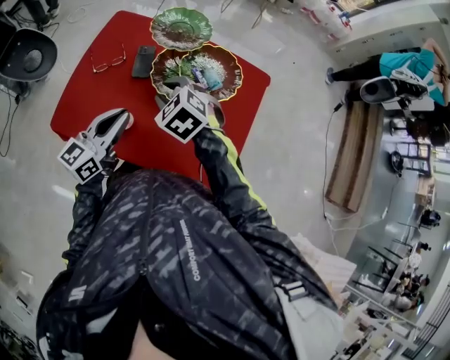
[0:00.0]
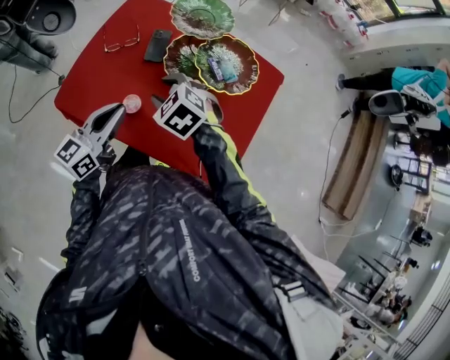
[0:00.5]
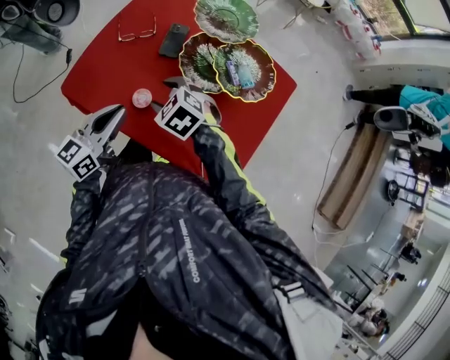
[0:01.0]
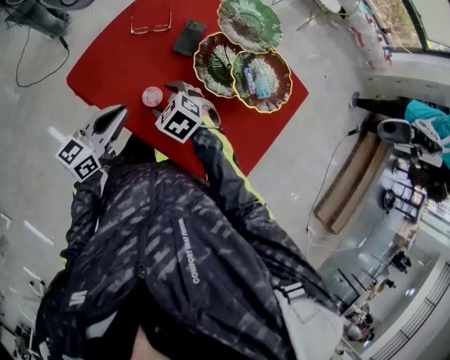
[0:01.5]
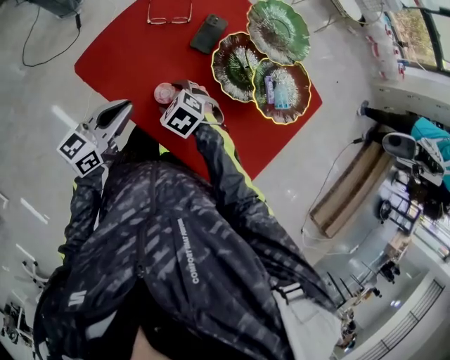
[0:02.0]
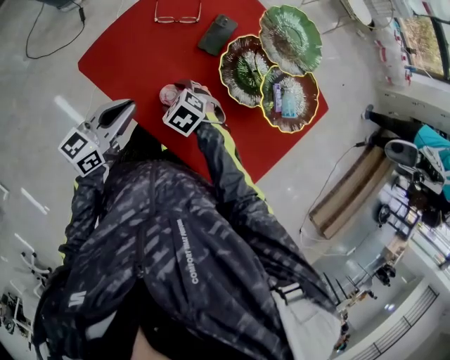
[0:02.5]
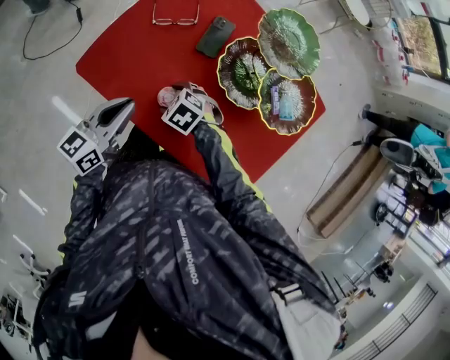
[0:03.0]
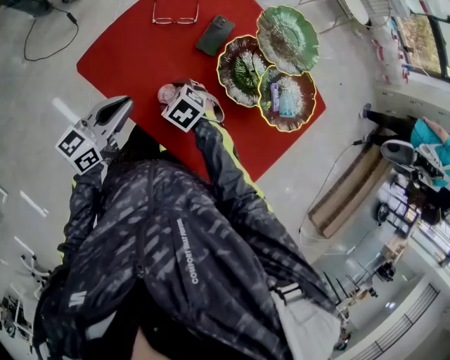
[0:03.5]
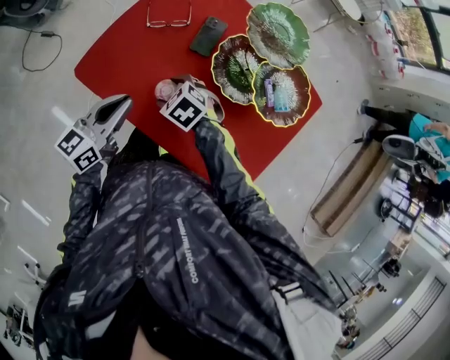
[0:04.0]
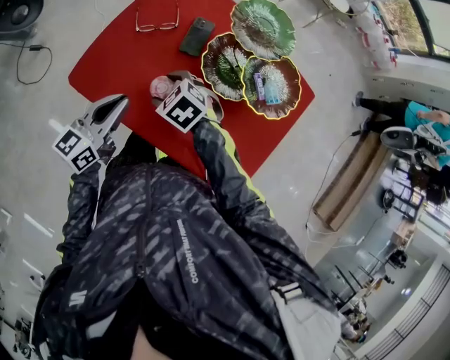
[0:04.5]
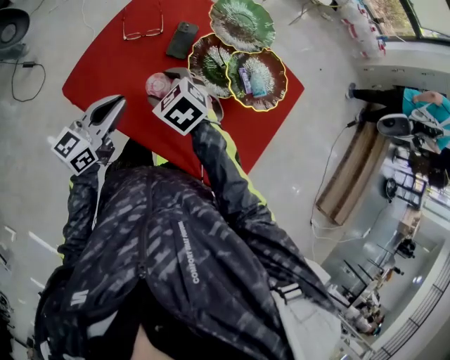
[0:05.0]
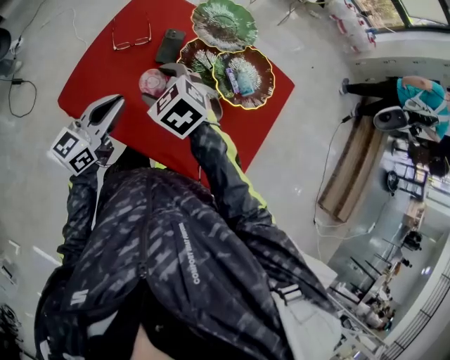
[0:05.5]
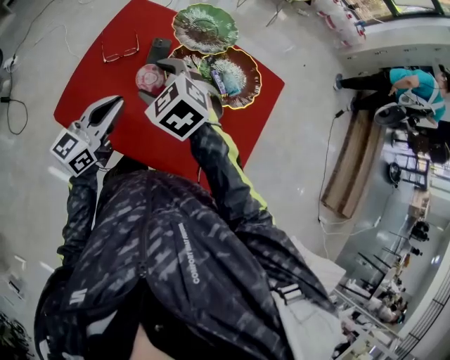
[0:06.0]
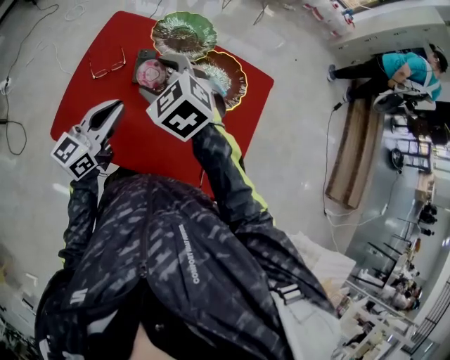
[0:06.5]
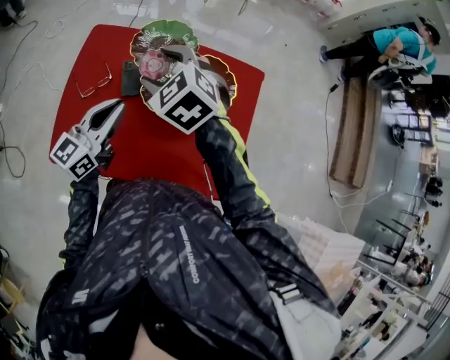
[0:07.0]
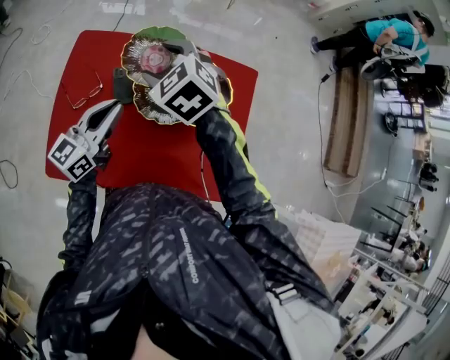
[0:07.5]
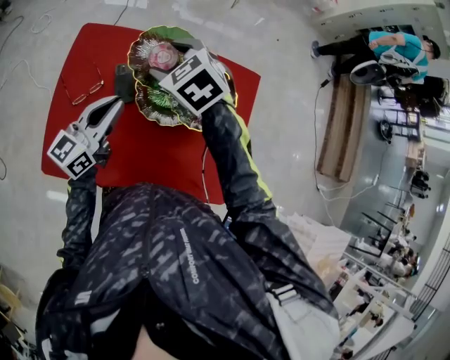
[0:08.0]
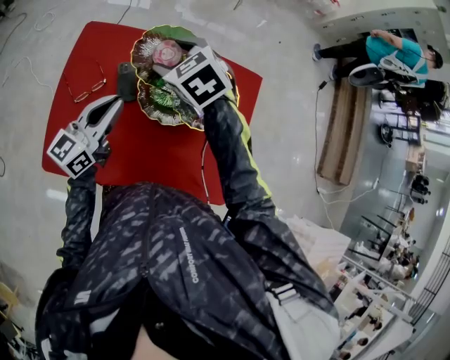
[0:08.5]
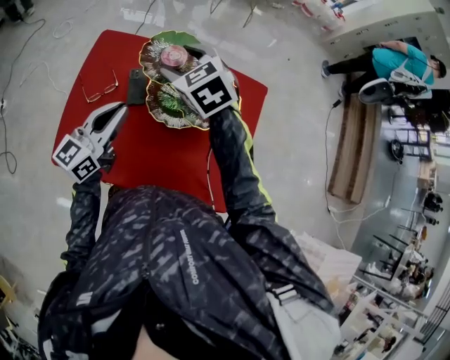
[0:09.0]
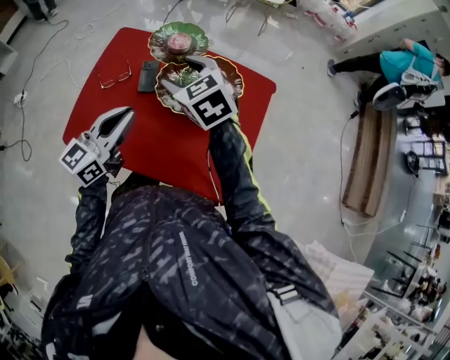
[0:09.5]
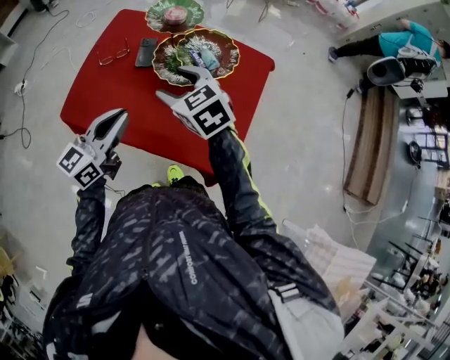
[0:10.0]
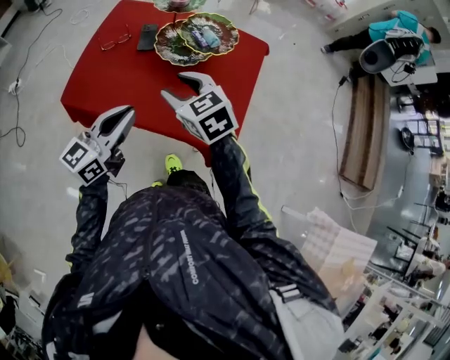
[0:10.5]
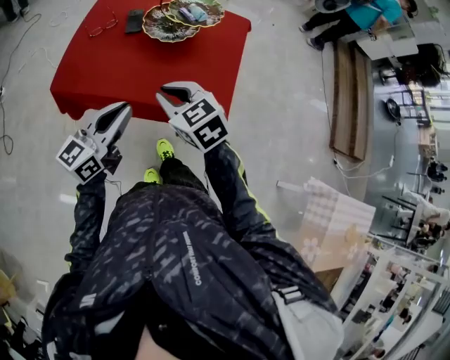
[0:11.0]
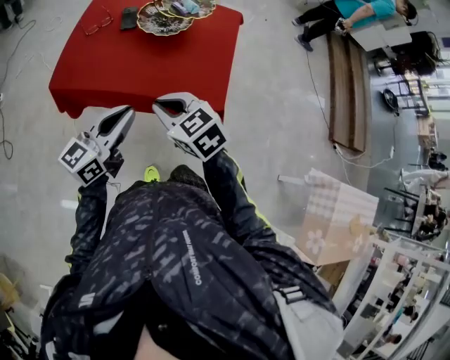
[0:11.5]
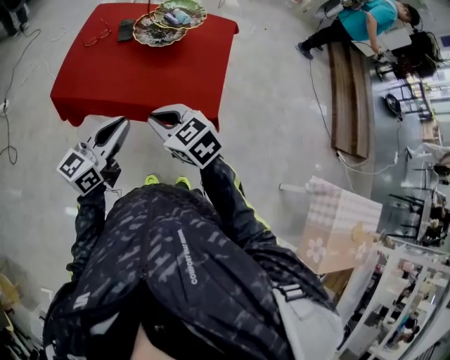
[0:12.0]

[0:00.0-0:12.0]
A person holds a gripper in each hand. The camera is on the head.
0:00.0 to 0:02.0: The right gripper goes some 20 cm downward, changes its angle by roughly 30 degrees, and opens. Meanwhile the left gripper shifts by roughly 15 cm.
0:02.0 to 0:04.0: The grippers make only small movements.
0:04.0 to 0:06.0: The right gripper moves upward, some 25 cm, and changes its angle by some 30 degrees. Meanwhile the left gripper heads upward and to the right, covering roughly 10 cm.
0:06.0 to 0:08.0: The two grippers go some 15 cm forward and to the right.
0:08.0 to 0:10.0: Both grippers travel together backward, some 25 cm.
0:10.0 to 0:12.0: Both grippers move backward, roughly 35 cm. The right gripper closes.

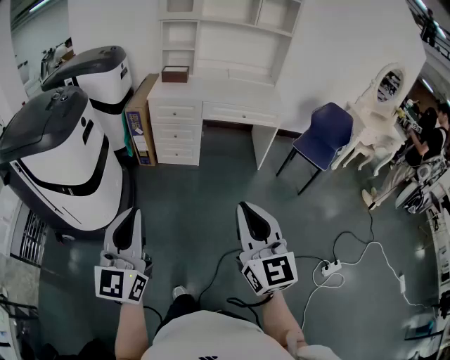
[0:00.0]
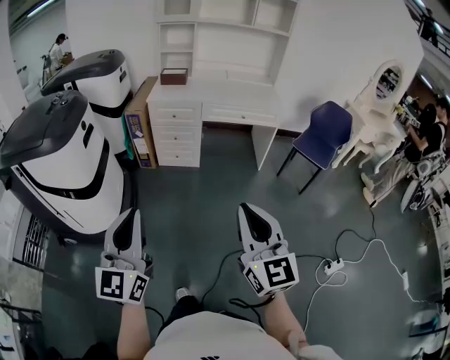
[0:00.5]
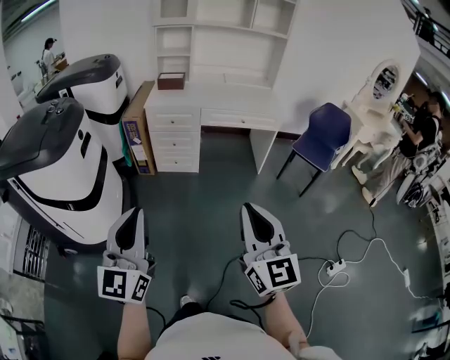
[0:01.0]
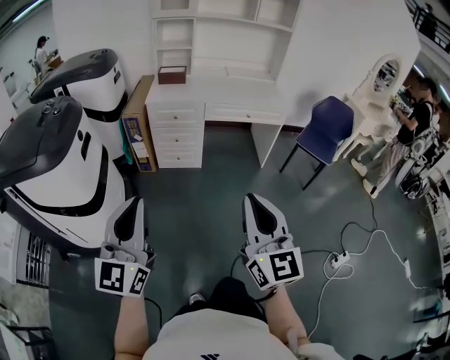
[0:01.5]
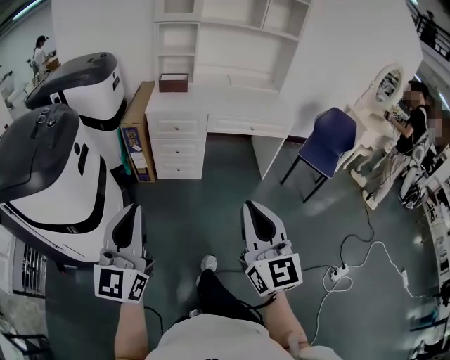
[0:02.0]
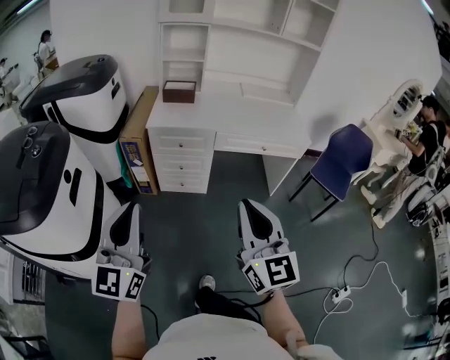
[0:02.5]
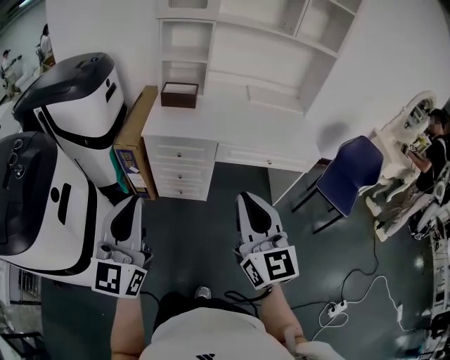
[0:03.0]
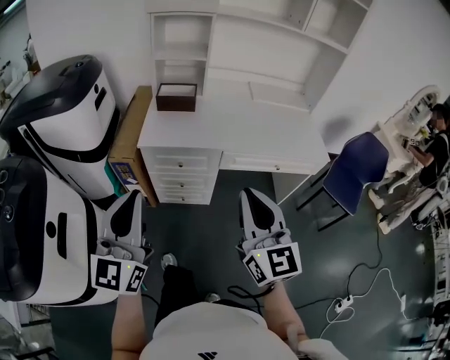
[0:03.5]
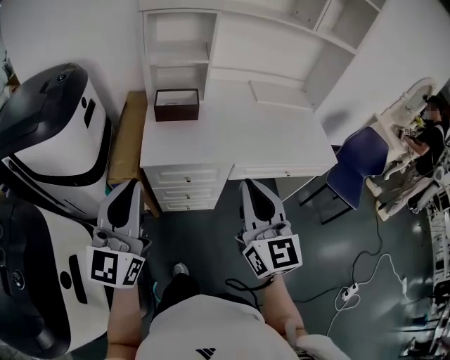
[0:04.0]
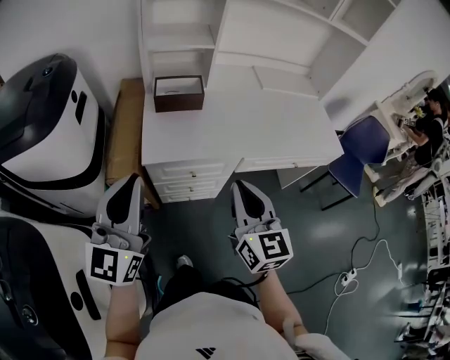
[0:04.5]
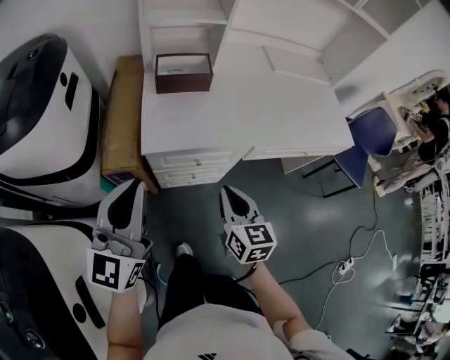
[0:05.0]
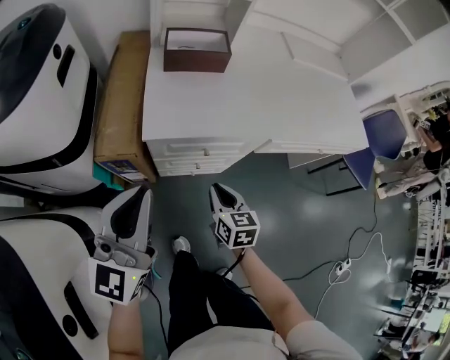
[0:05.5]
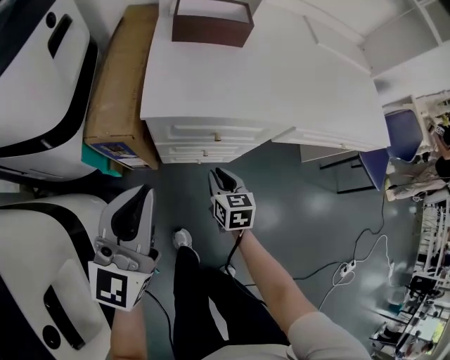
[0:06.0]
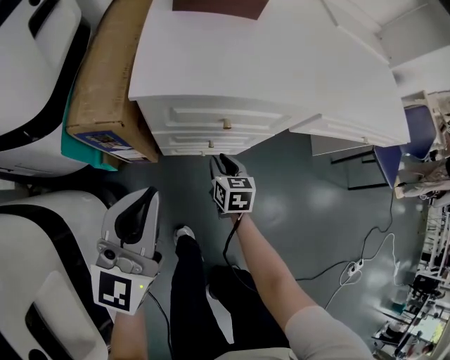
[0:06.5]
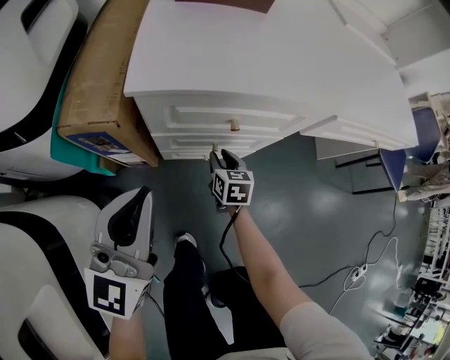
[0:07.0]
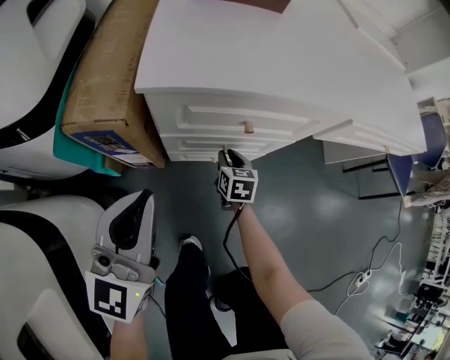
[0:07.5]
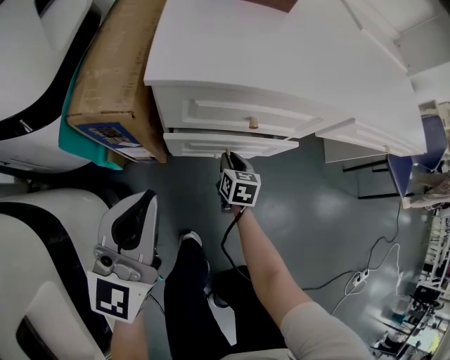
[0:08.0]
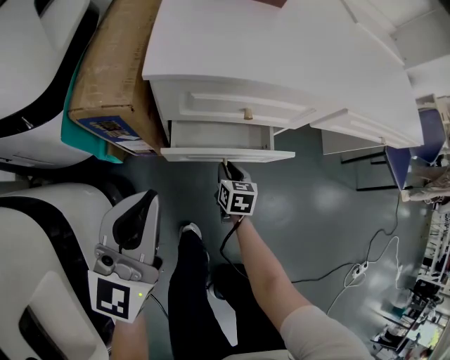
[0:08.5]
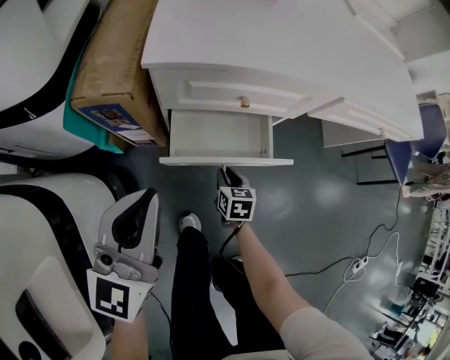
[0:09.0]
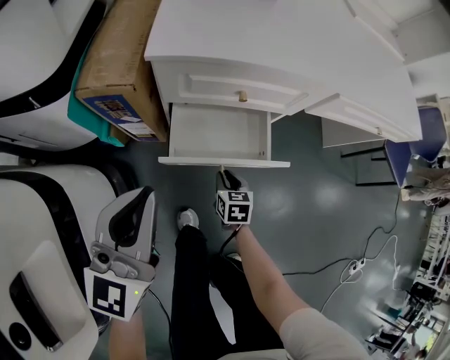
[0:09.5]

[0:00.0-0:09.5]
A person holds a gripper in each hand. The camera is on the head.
0:00.0 to 0:02.0: Both grippers move forward and to the left, roughly 20 cm.
0:02.0 to 0:04.0: The two grippers travel together, forward, some 60 cm.
0:04.0 to 0:05.5: The left gripper shifts roughly 20 cm downward and forward; the right gripper travels downward by about 40 cm, and tilts its fingers roughly 40 degrees downward.
0:05.5 to 0:07.5: Both grippers move downward, about 25 cm.
0:07.5 to 0:09.5: The left gripper travels backward by roughly 5 cm. The right gripper travels backward by about 15 cm.

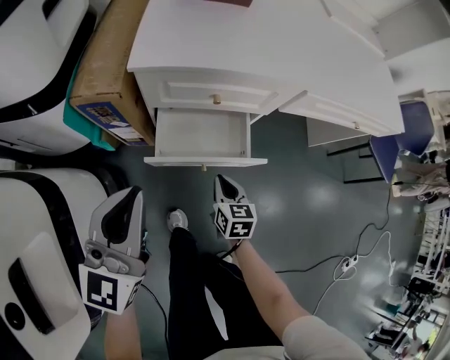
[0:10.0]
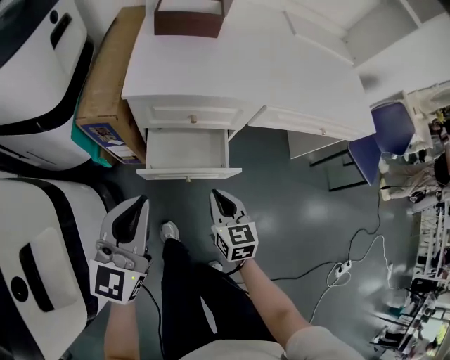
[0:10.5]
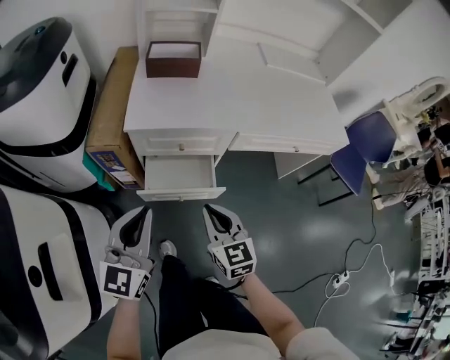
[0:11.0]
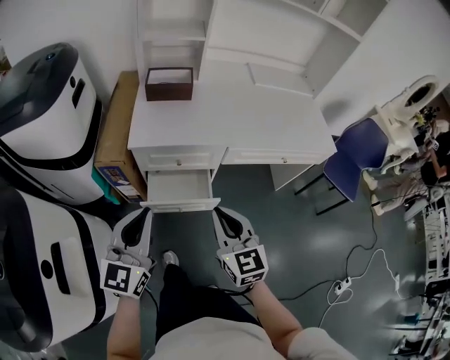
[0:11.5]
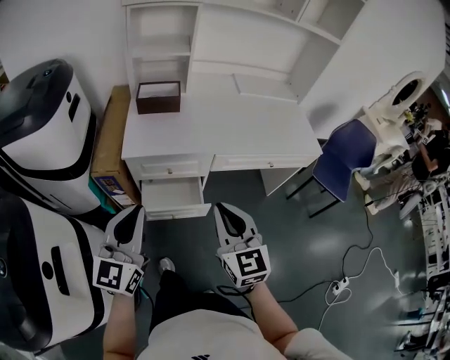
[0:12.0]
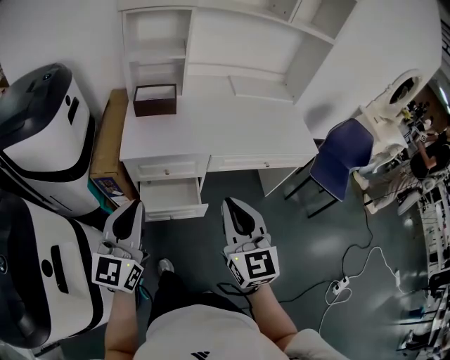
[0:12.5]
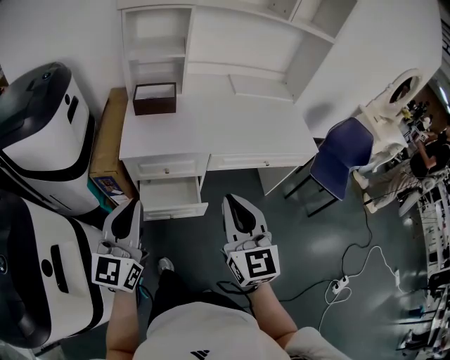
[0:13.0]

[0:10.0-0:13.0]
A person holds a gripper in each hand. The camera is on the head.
0:10.0 to 0:11.5: The left gripper heads upward and to the right, covering some 20 cm; the right gripper moves upward, approximately 40 cm, and rotates about 30 degrees.
0:11.5 to 0:13.0: The right gripper travels upward and to the right by some 15 cm. Meanwhile the left gripper shifts some 5 cm upward.

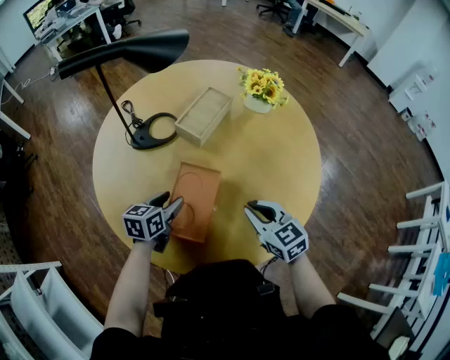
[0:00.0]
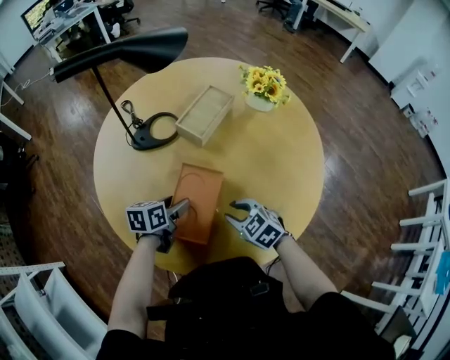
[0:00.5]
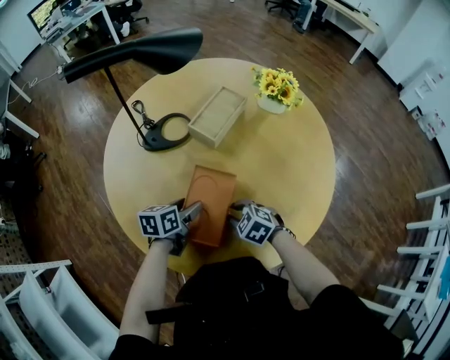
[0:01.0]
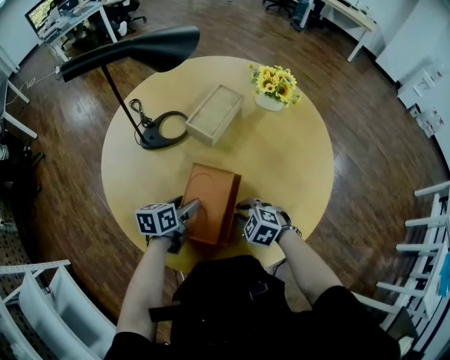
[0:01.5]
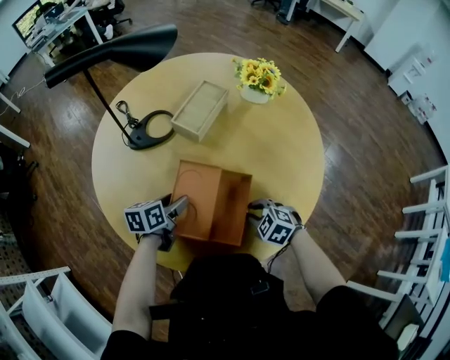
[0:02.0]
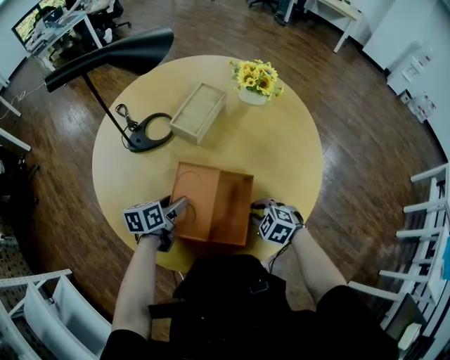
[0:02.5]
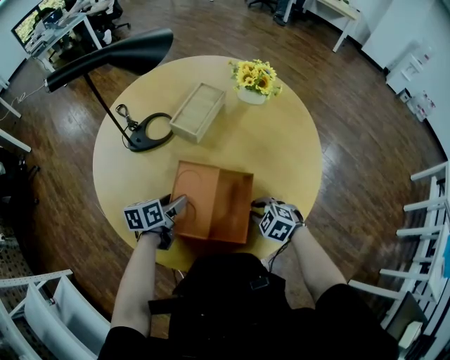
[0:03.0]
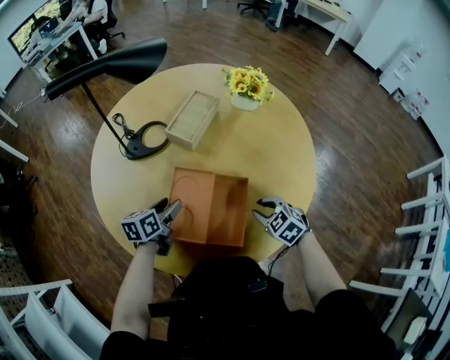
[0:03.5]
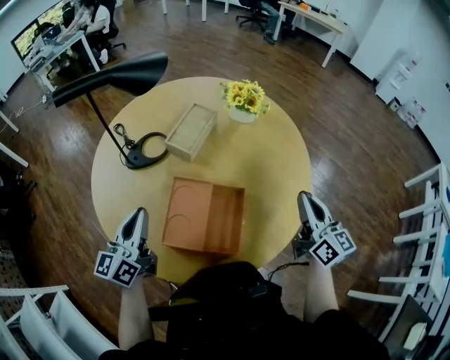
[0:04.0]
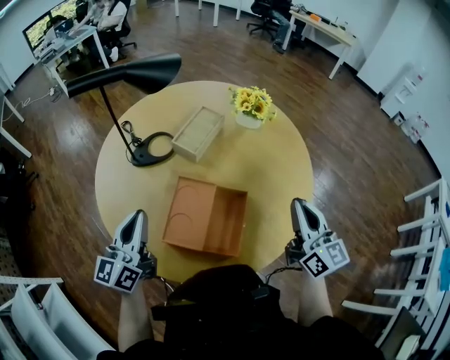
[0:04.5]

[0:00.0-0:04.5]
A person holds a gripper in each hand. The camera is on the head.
0:00.0 to 0:02.0: The right gripper travels downward by roughly 10 cm, and points its fingers roughly 30 degrees further downward.
0:02.0 to 0:04.5: Both grippers move upward, some 25 cm. The right gripper tips its fingers upward by roughly 60 degrees; the left gripper angles its fingers upward, by approximately 40 degrees, and closes up.
